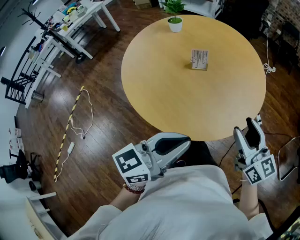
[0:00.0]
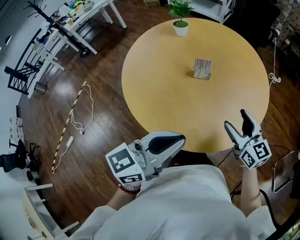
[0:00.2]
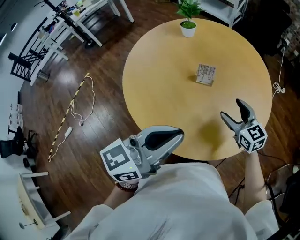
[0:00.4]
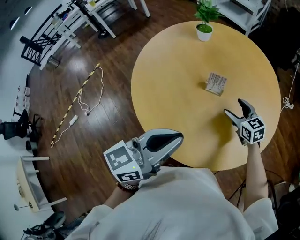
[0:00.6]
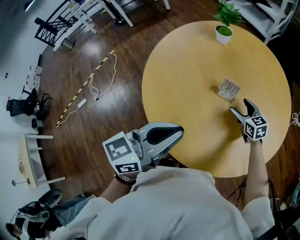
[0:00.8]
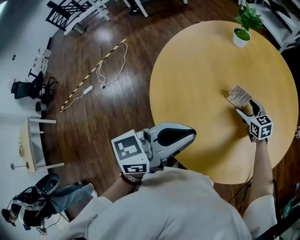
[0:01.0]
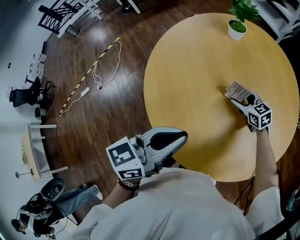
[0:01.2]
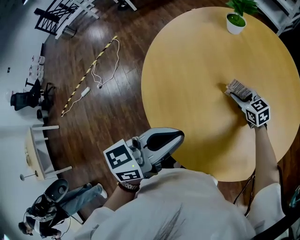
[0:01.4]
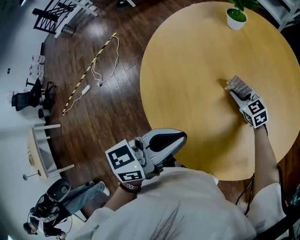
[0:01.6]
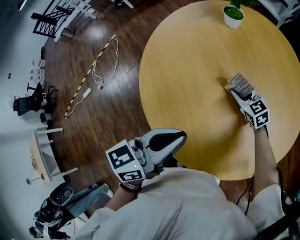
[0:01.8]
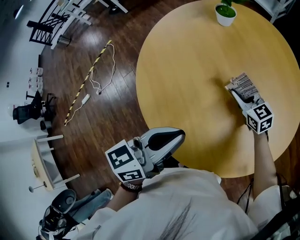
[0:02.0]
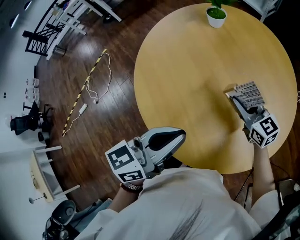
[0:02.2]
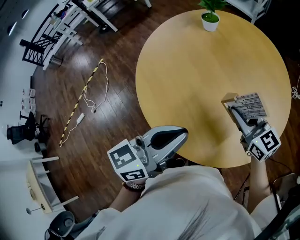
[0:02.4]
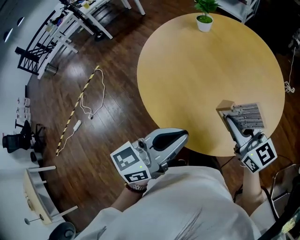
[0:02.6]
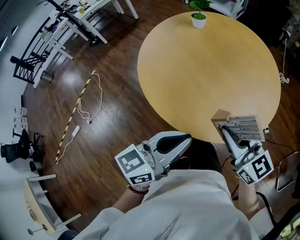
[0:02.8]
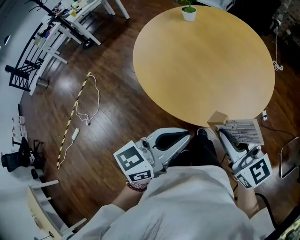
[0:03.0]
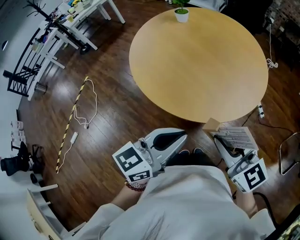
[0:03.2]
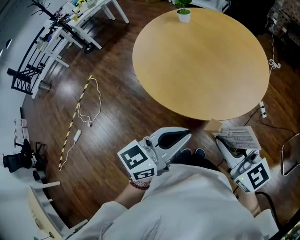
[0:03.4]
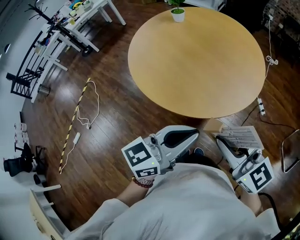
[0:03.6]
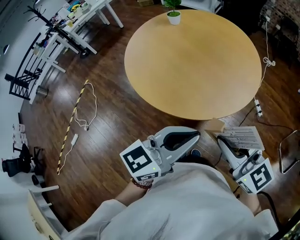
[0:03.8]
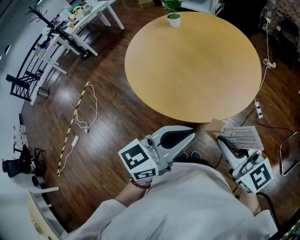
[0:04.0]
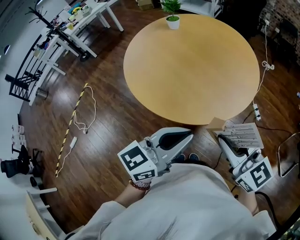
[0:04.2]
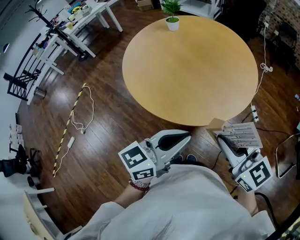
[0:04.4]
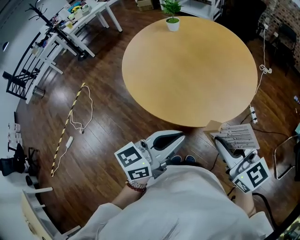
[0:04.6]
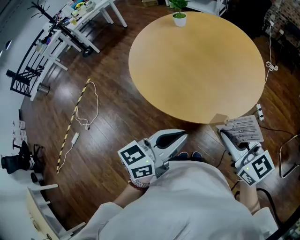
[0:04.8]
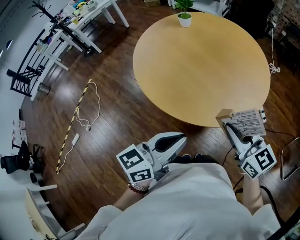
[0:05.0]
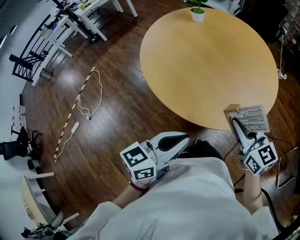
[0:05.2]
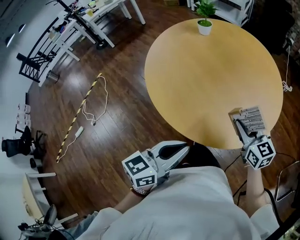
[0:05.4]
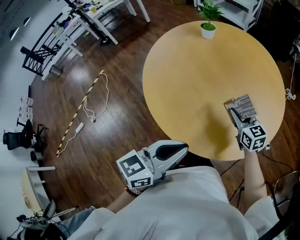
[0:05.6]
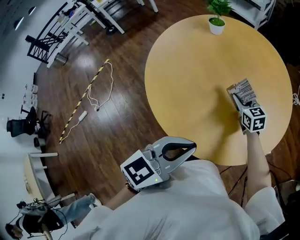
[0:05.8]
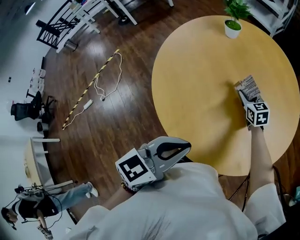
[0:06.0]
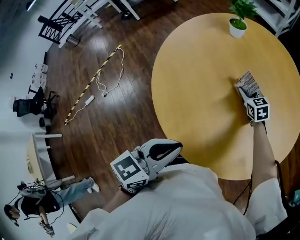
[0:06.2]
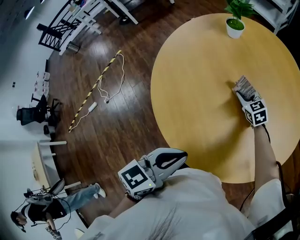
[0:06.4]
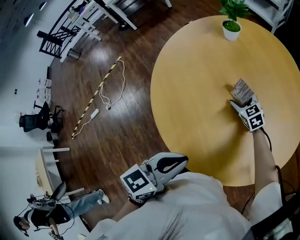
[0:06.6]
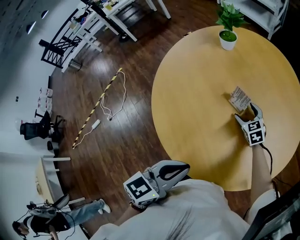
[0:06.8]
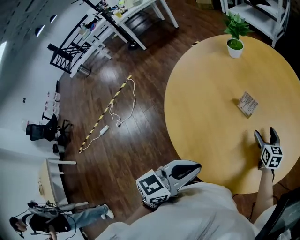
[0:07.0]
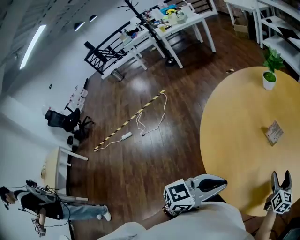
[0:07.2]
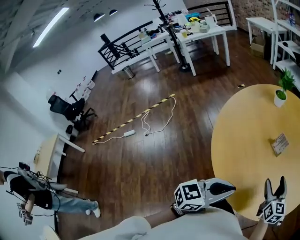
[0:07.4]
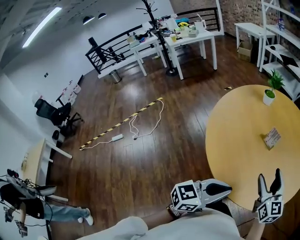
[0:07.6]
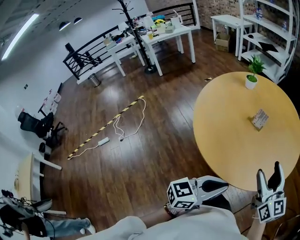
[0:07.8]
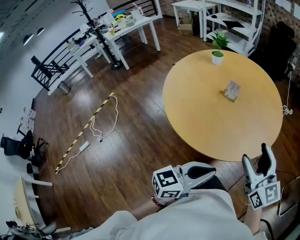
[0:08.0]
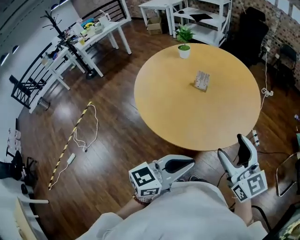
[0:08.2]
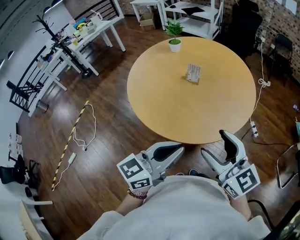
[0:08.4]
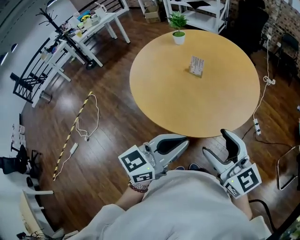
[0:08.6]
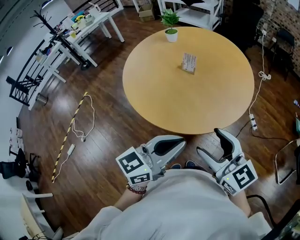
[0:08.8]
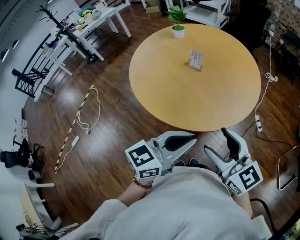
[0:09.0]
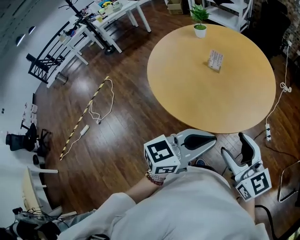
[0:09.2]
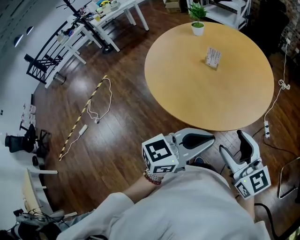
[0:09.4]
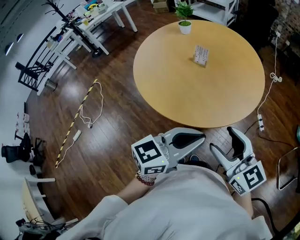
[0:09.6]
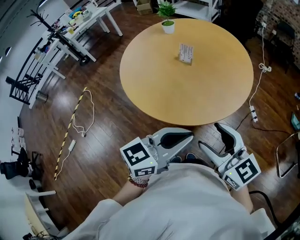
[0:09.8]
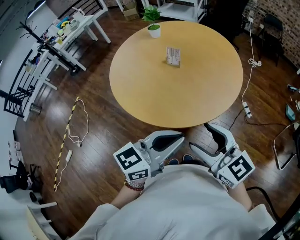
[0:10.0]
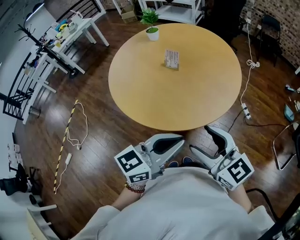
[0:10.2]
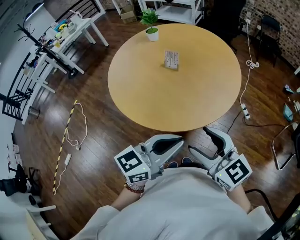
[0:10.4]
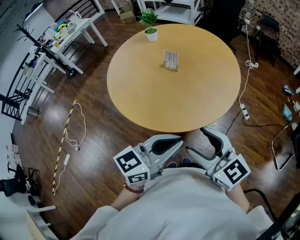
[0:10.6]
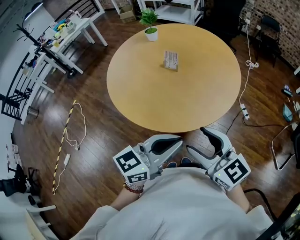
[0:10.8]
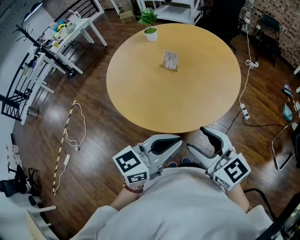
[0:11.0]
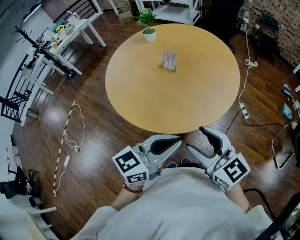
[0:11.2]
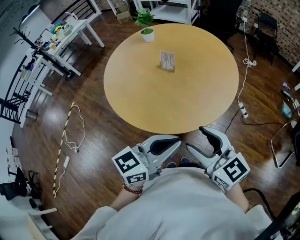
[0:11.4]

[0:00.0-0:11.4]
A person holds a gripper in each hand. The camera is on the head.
0:00.0 to 0:01.4: The left gripper moves roughly 30 cm, and turns by about 30 degrees. Meanwhile the right gripper shifts by roughly 60 cm, and angles its fingers downward, by roughly 30 degrees.
0:01.4 to 0:02.8: The right gripper shifts about 50 cm backward and upward, and changes its angle by approximately 40 degrees. Meanwhile the left gripper is displaced backward by some 25 cm, and rotates about 20 degrees.
0:02.8 to 0:04.2: The grippers both shift backward, to the right and upward by approximately 20 cm.
0:04.2 to 0:05.6: The left gripper is displaced forward and to the left by roughly 20 cm. Meanwhile the right gripper goes approximately 40 cm forward and downward.
0:05.6 to 0:07.2: The right gripper heads to the right and downward, covering about 15 cm, goes forward and returns, roughly 25 cm each way, and opens its fingers; the left gripper is displaced downward by about 5 cm, and goes forward and returns, about 15 cm each way.
0:07.2 to 0:08.6: The right gripper is displaced backward and upward by about 40 cm, and rotates roughly 30 degrees, while the left gripper heads backward and upward, covering approximately 20 cm, and rotates approximately 20 degrees.
0:08.6 to 0:11.4: The grippers move only a little.

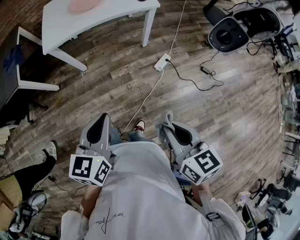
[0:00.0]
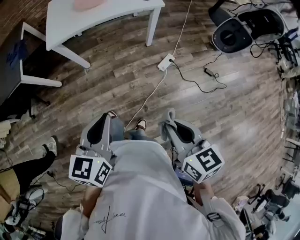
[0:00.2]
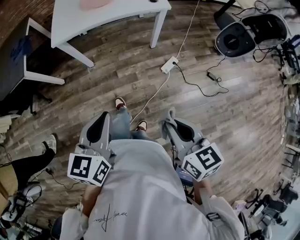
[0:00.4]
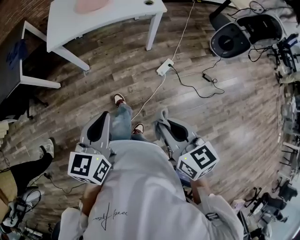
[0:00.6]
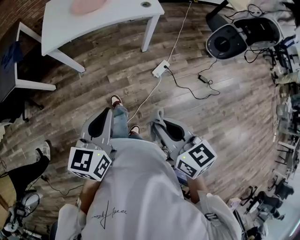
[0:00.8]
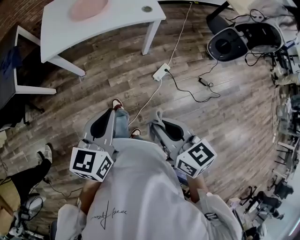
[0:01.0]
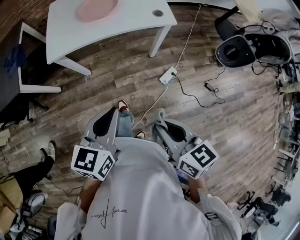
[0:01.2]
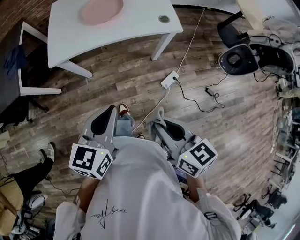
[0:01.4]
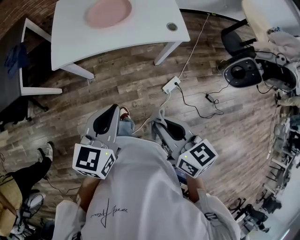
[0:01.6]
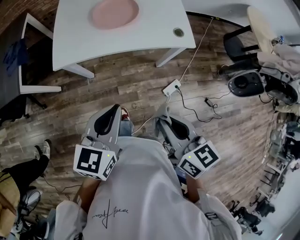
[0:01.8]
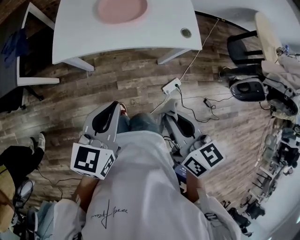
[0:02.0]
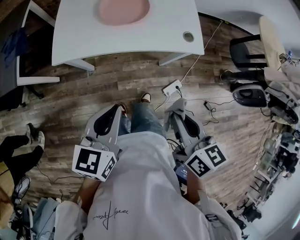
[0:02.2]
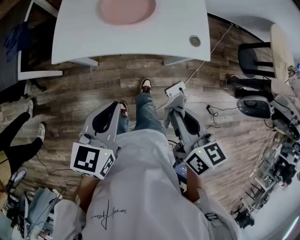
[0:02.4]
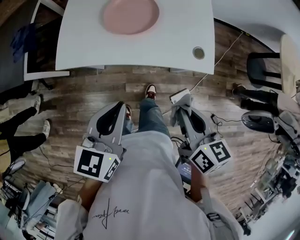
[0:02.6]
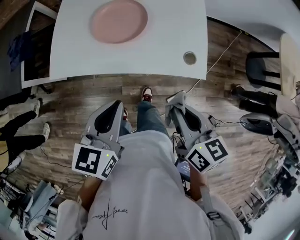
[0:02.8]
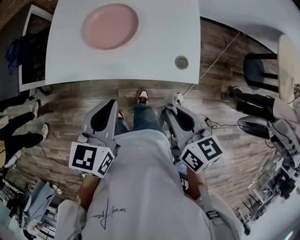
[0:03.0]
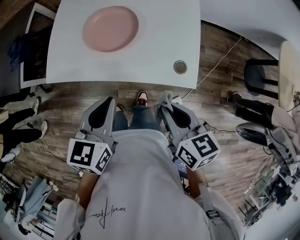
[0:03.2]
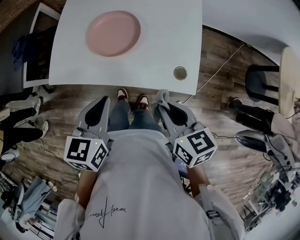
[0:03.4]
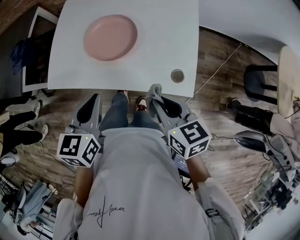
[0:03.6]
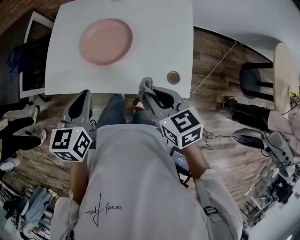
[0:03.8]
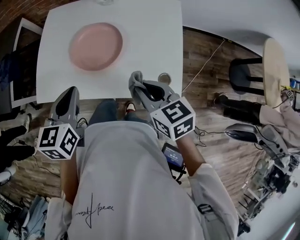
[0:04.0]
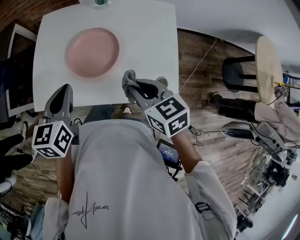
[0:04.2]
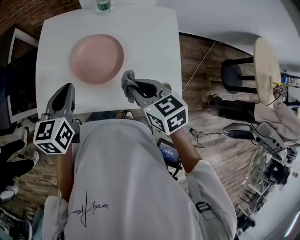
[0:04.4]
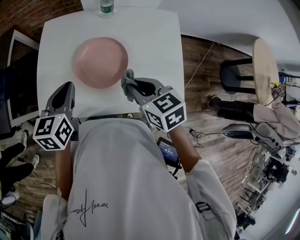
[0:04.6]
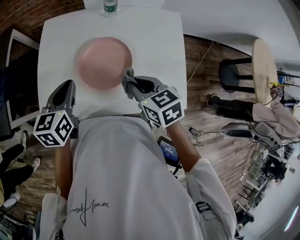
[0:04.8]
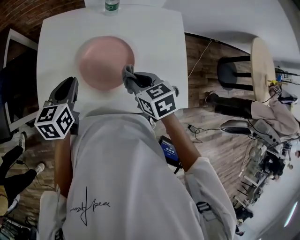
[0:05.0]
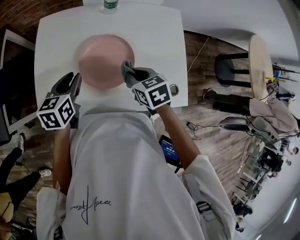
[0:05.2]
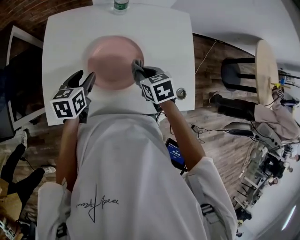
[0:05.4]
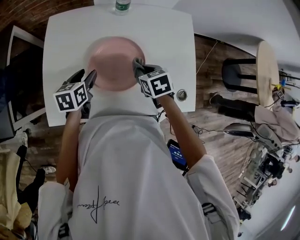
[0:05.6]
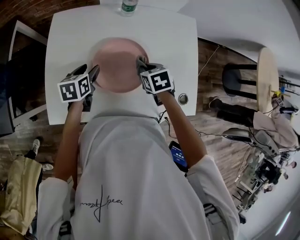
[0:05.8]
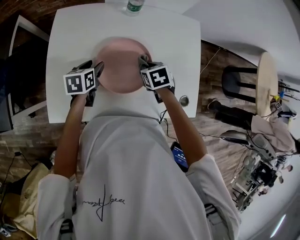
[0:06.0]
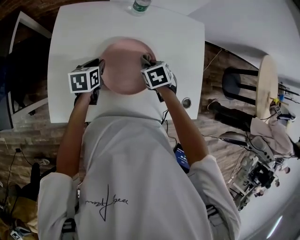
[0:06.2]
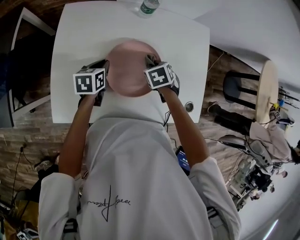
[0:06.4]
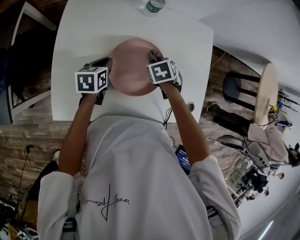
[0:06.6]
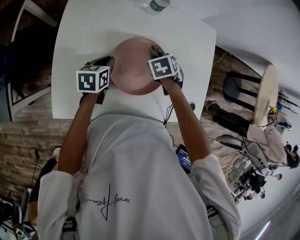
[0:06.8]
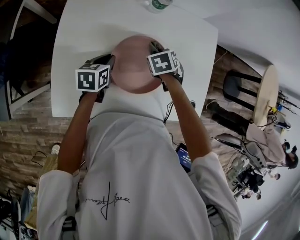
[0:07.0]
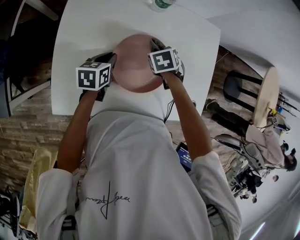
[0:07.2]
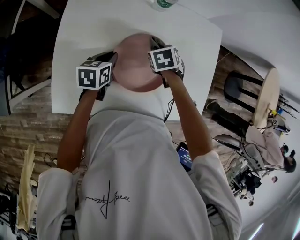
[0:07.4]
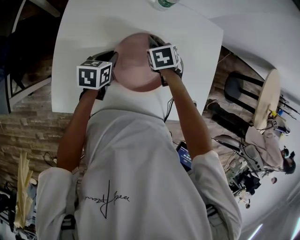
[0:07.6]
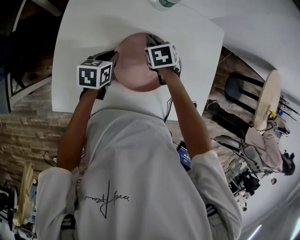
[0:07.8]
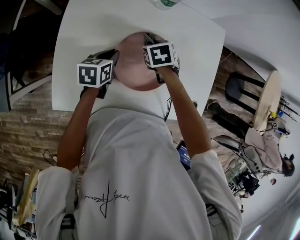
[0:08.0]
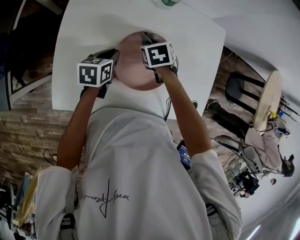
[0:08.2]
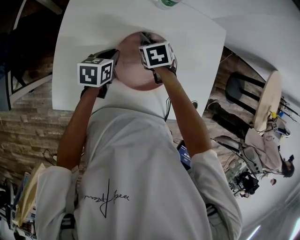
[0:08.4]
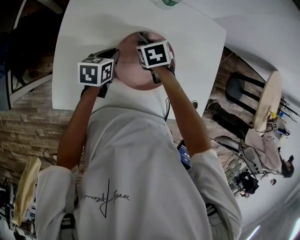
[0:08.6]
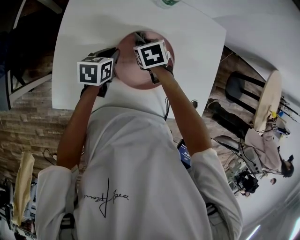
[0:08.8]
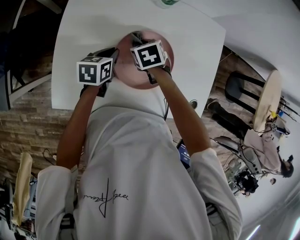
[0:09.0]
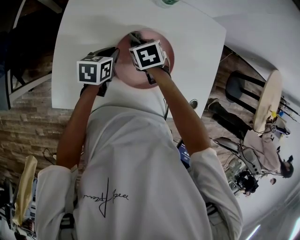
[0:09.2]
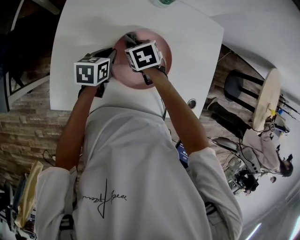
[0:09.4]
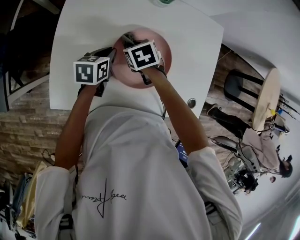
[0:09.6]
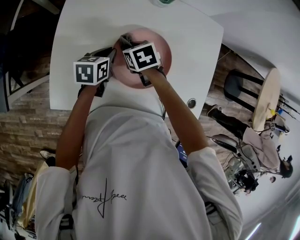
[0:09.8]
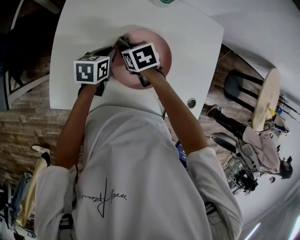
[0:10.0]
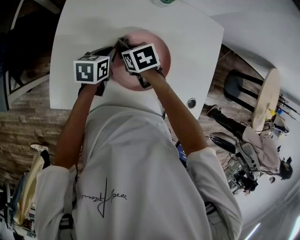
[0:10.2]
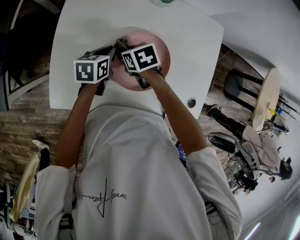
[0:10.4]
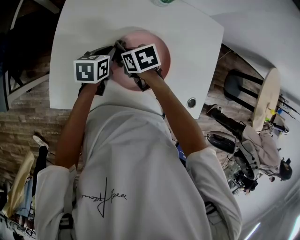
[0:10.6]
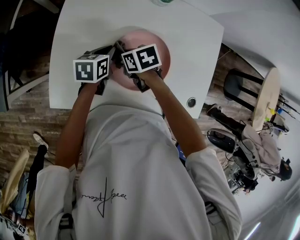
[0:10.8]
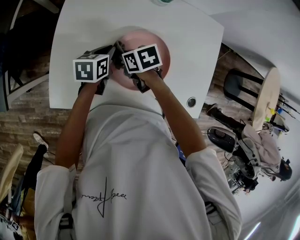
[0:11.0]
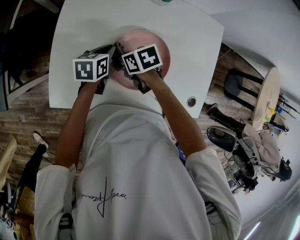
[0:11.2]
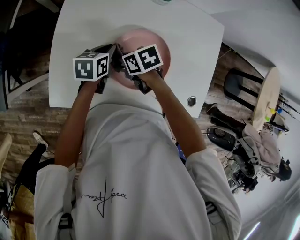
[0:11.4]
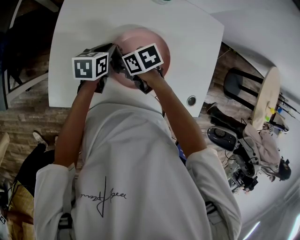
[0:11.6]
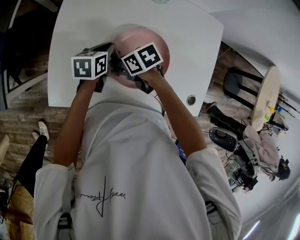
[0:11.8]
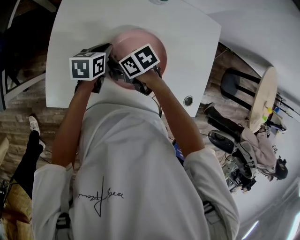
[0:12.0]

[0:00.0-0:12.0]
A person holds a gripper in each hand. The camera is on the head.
0:00.0 to 0:01.6: Both grippers travel together forward, about 25 cm.
0:01.6 to 0:03.0: The two grippers go approximately 30 cm forward and to the right.
0:03.0 to 0:04.4: The two grippers go some 20 cm forward. The right gripper turns by some 20 degrees.
0:04.4 to 0:06.0: Both grippers move downward and forward, some 25 cm. The left gripper rotates about 20 degrees, and opens its fingers. Meanwhile the right gripper tips its fingers downward by roughly 30 degrees.
0:06.0 to 0:07.6: The left gripper closes its fingers. The right gripper is displaced to the left and forward by approximately 10 cm.
0:07.6 to 0:09.0: The right gripper shifts about 5 cm to the left.
0:09.0 to 0:10.4: The right gripper changes place by some 5 cm.
0:10.4 to 0:12.0: The right gripper shifts by about 10 cm, and changes its angle by some 20 degrees.
